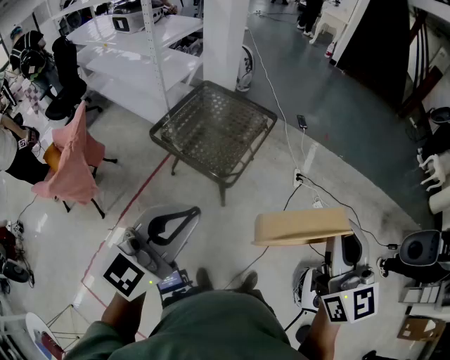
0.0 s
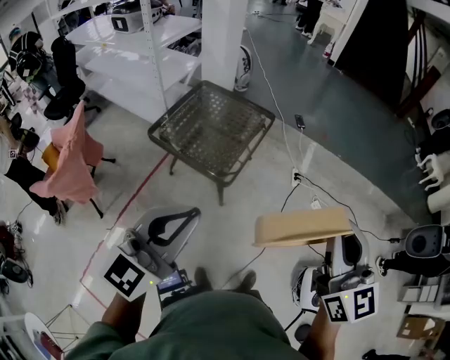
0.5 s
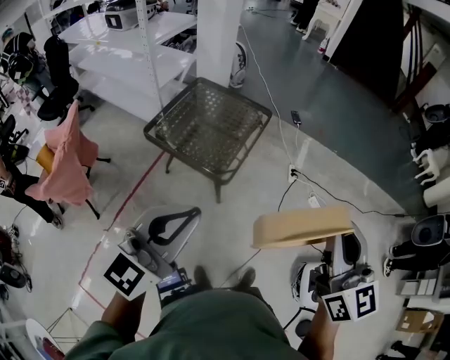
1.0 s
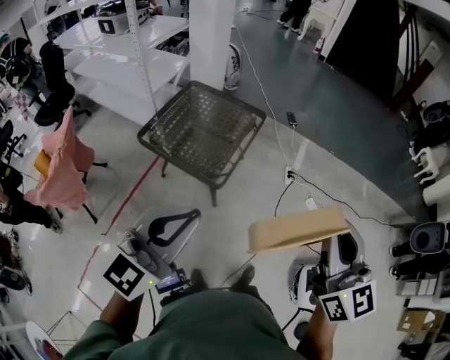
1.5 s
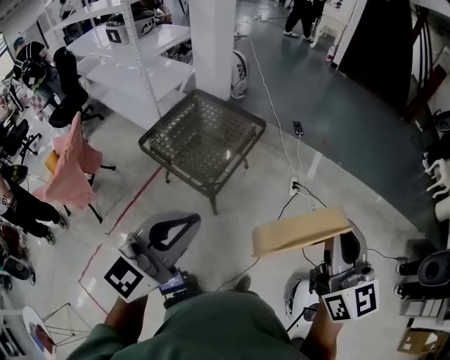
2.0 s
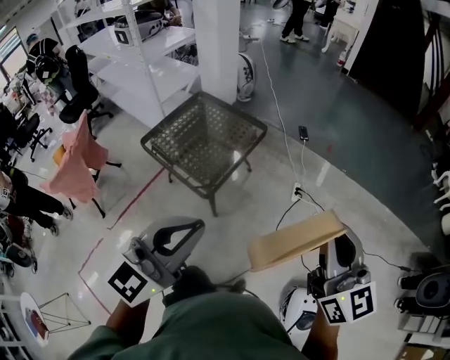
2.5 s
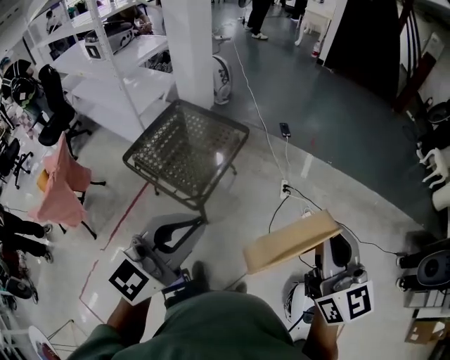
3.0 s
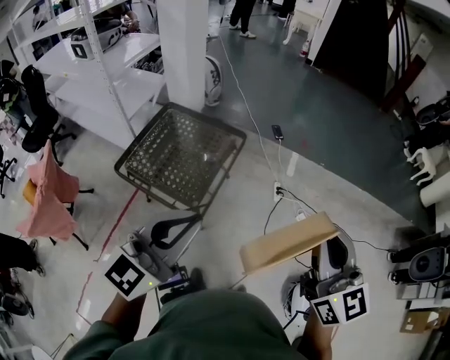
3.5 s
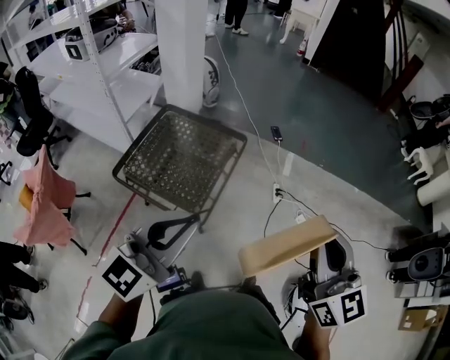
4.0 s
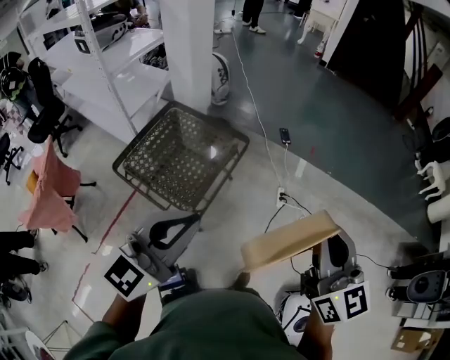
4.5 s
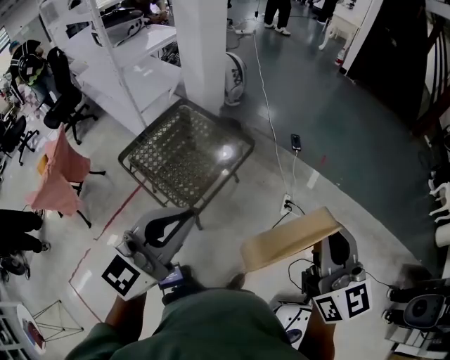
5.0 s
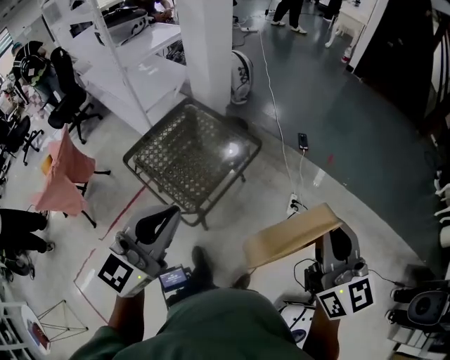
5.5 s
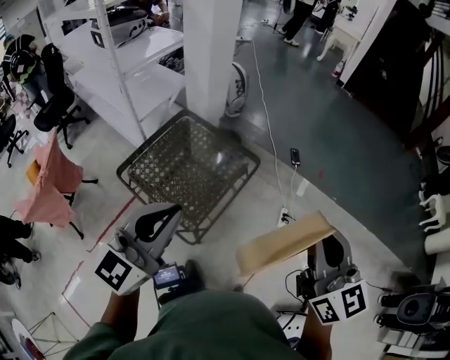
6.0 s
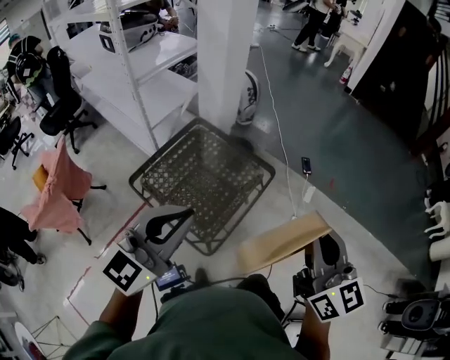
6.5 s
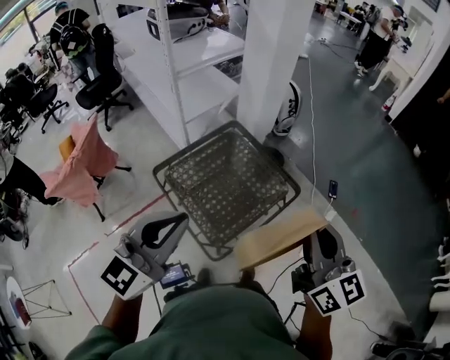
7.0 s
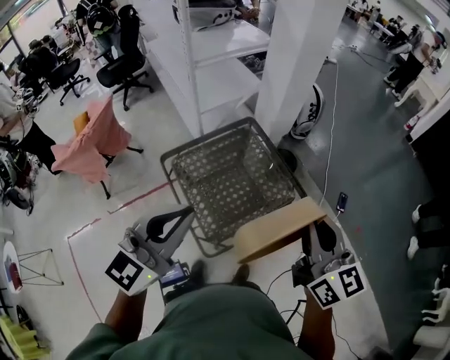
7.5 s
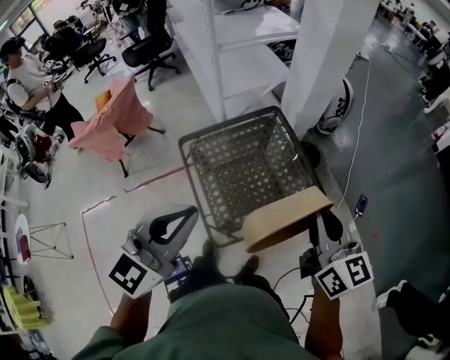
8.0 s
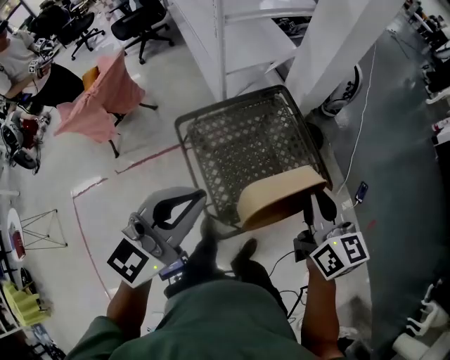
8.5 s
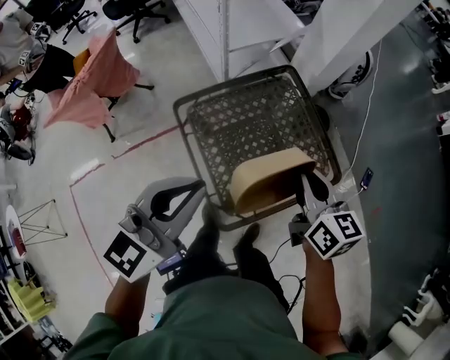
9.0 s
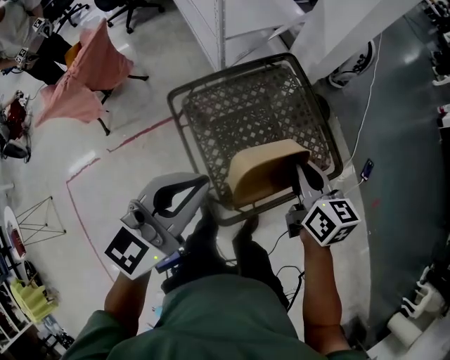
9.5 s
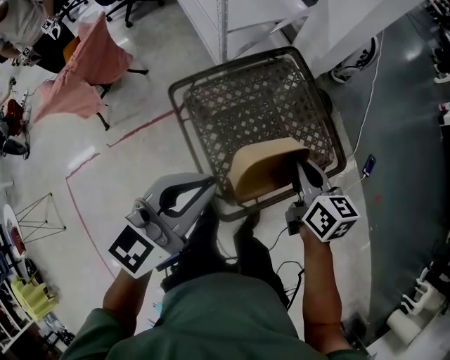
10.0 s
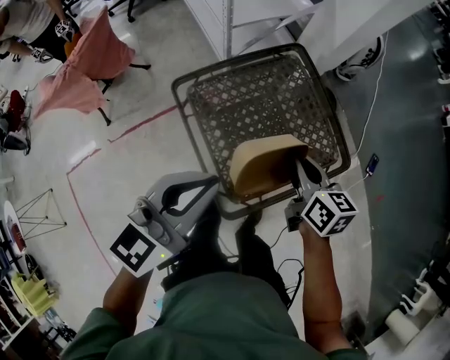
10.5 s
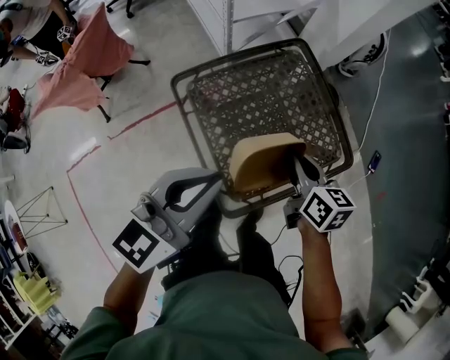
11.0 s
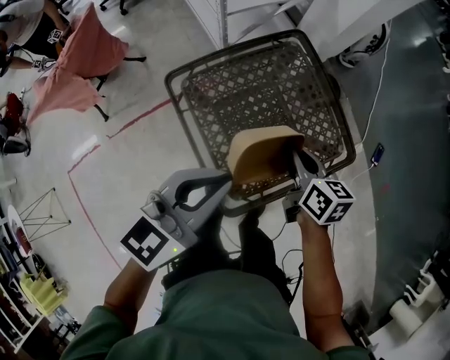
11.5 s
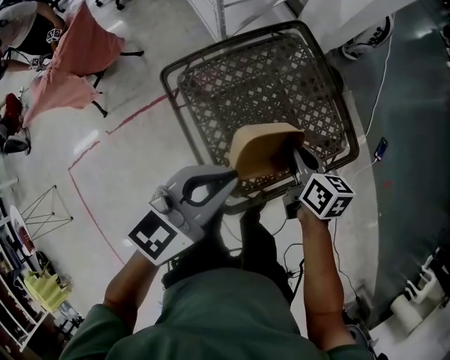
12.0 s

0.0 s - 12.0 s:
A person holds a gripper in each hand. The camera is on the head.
0.0 s - 2.0 s: Both grippers move to the right and forward, roughly 15 cm.
2.0 s - 4.0 s: The grippers both shift forward and to the left by some 15 cm.
4.0 s - 6.0 s: Both grippers move forward, about 15 cm. The left gripper goes to the right and returns, about 15 cm each way.
6.0 s - 8.0 s: The left gripper changes place by approximately 10 cm, and turns by some 30 degrees. The right gripper changes place by approximately 30 cm, and swivels roughly 40 degrees.
8.0 s - 10.0 s: The right gripper travels downward, to the left and forward by approximately 30 cm, and changes its angle by about 30 degrees. Meanwhile the left gripper travels downward, forward and to the left by some 20 cm.
10.0 s - 12.0 s: Both grippers travel together downward, roughly 10 cm.

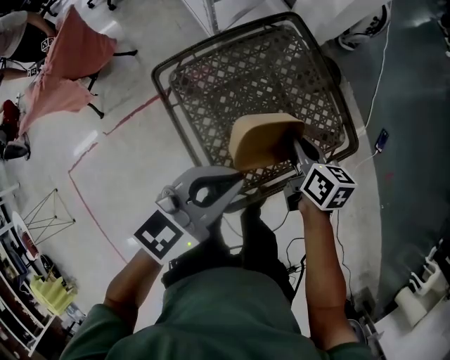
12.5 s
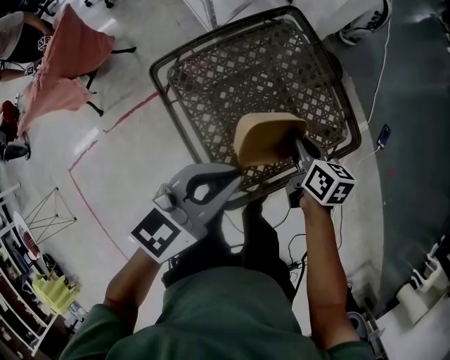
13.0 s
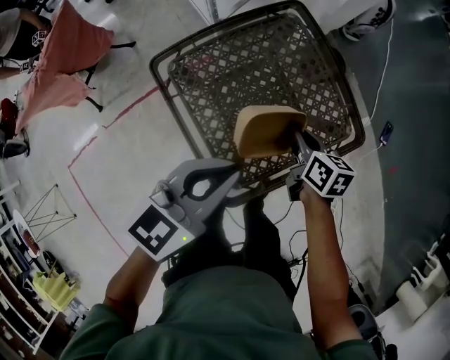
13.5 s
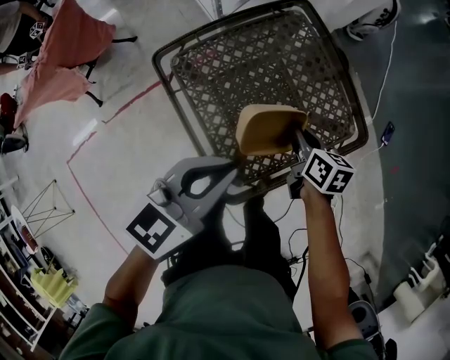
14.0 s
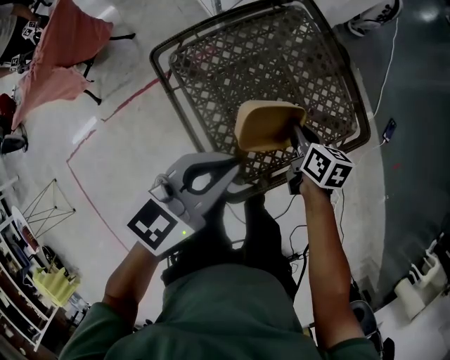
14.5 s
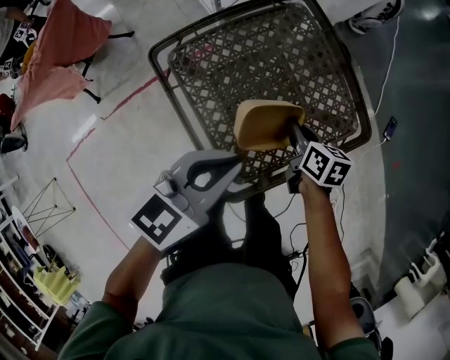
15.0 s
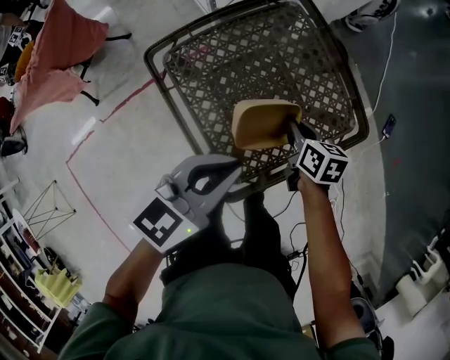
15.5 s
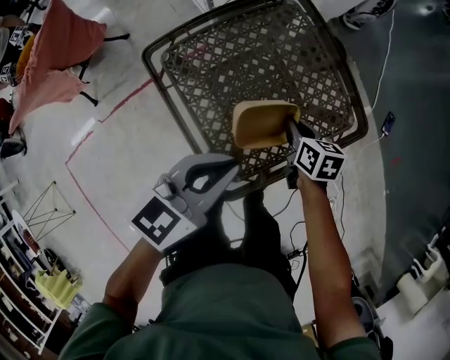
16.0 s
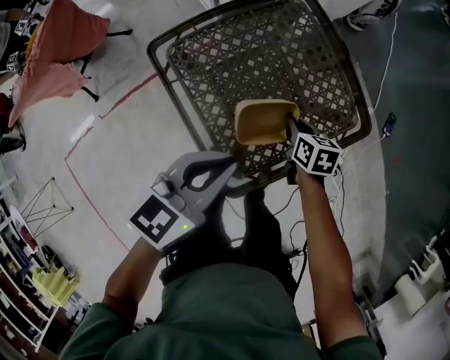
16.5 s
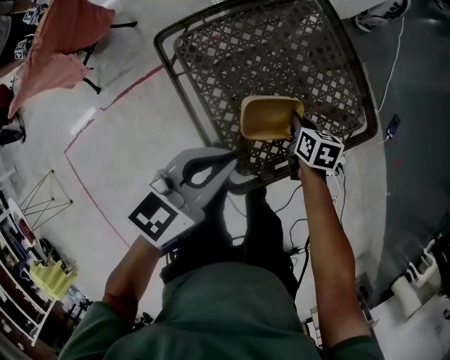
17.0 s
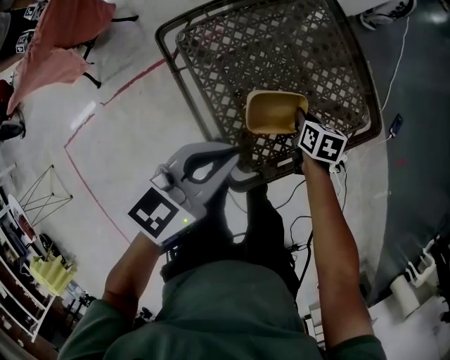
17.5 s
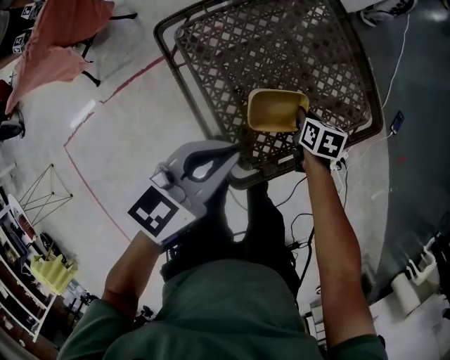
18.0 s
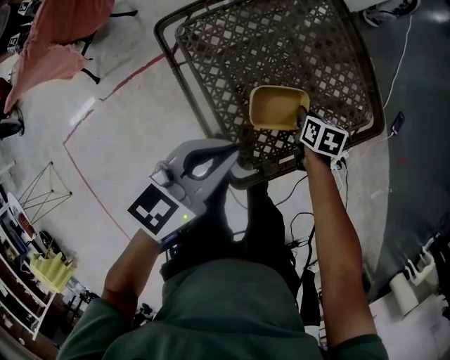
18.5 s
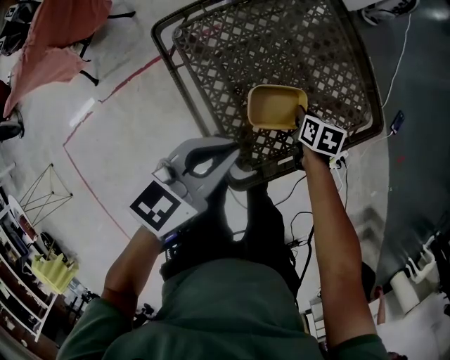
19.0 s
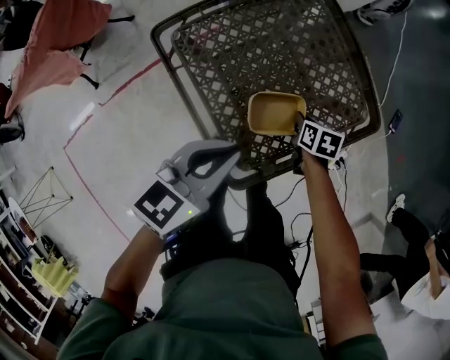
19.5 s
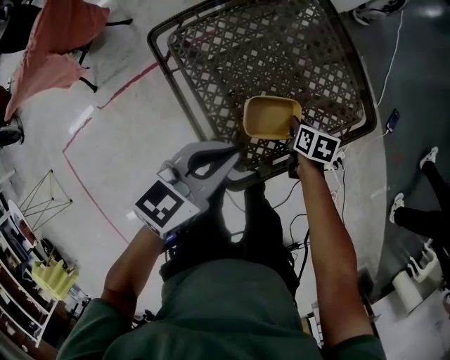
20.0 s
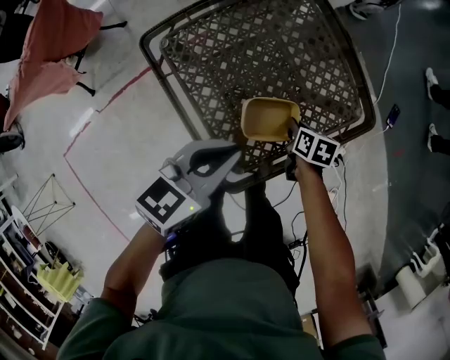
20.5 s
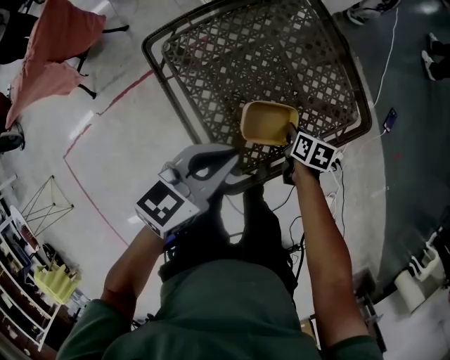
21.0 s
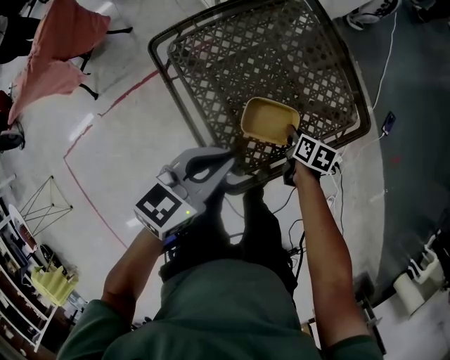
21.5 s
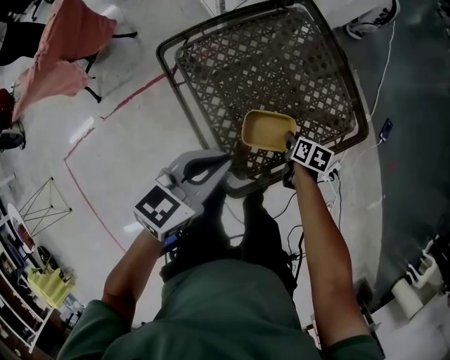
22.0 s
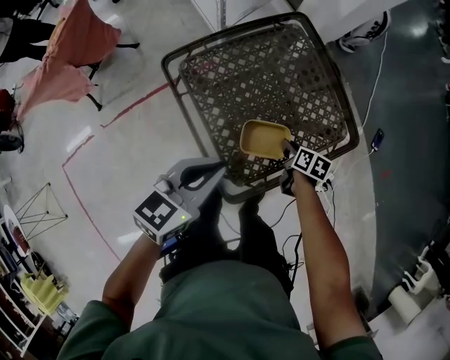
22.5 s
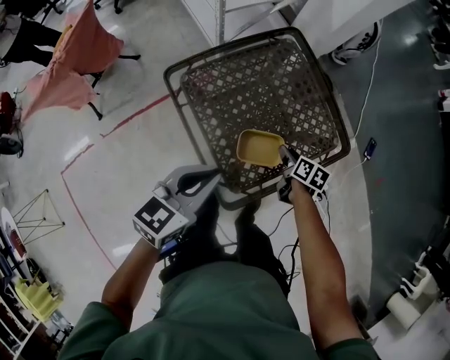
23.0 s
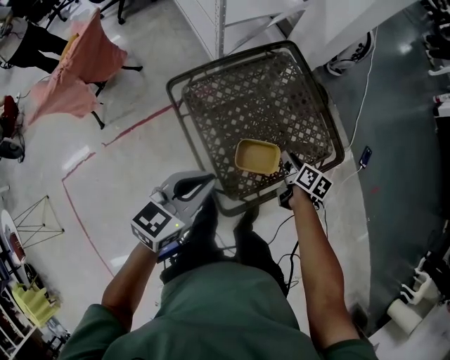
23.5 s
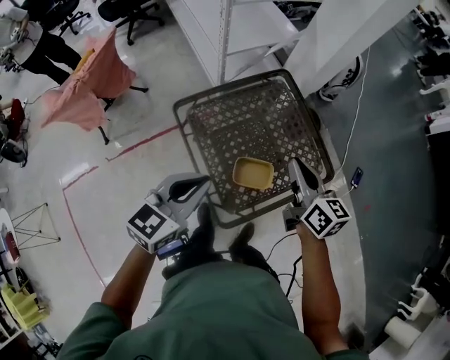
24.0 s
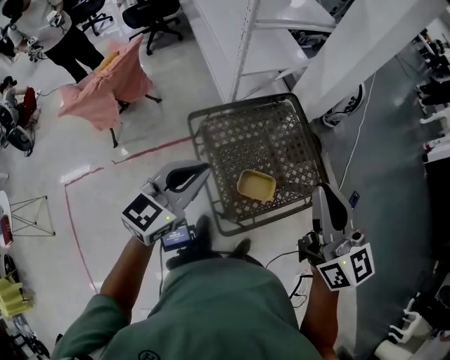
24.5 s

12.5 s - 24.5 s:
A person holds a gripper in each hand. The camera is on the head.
12.5 s - 14.5 s: The right gripper moves downward, approximately 10 cm; the left gripper shifts by approximately 5 cm.
14.5 s - 16.5 s: The right gripper travels downward by approximately 5 cm.
16.5 s - 18.5 s: The right gripper moves downward, approximately 5 cm.
18.5 s - 20.5 s: There are only small adjustments of the grippers.
20.5 s - 22.5 s: The right gripper opens its fingers; the left gripper travels upward by roughly 5 cm.
22.5 s - 24.5 s: The left gripper heads upward, covering some 20 cm, and rotates some 20 degrees. Meanwhile the right gripper is displaced upward by approximately 60 cm, tilts its fingers roughly 60 degrees upward, and closes its fingers.

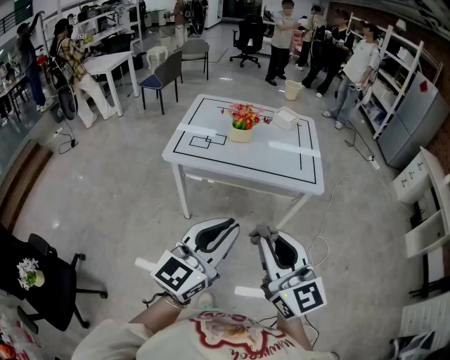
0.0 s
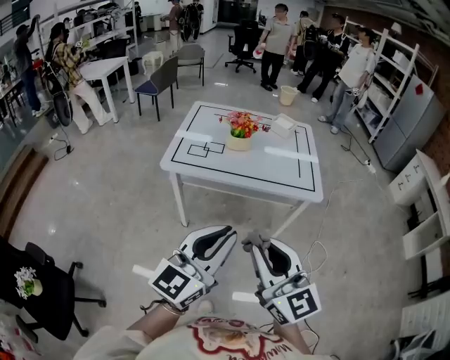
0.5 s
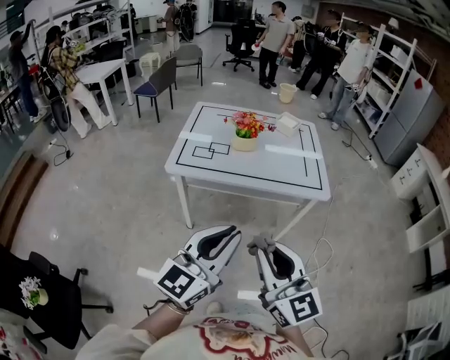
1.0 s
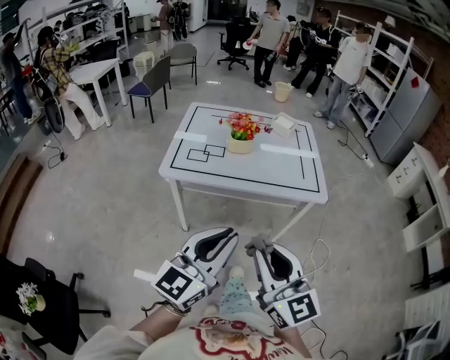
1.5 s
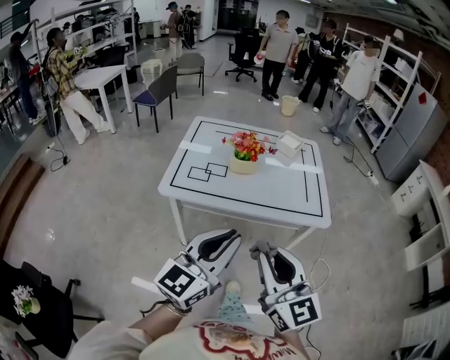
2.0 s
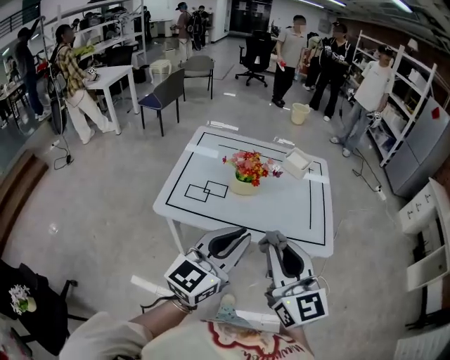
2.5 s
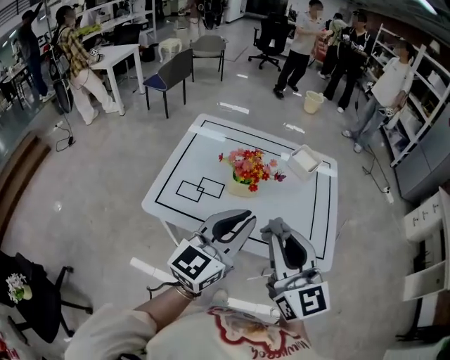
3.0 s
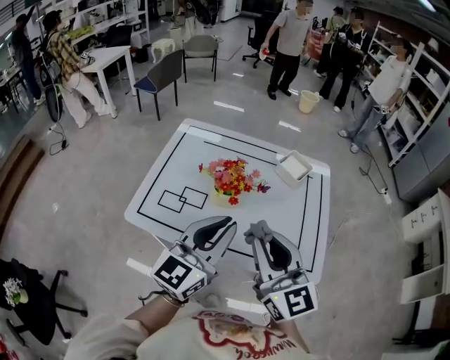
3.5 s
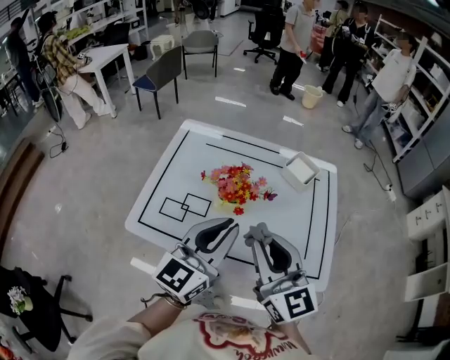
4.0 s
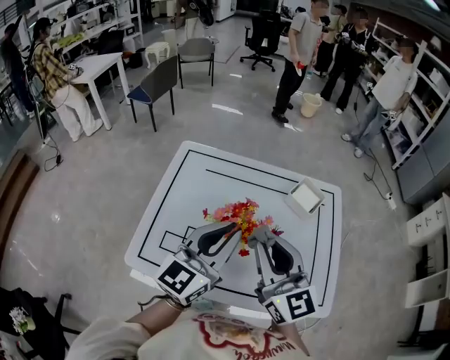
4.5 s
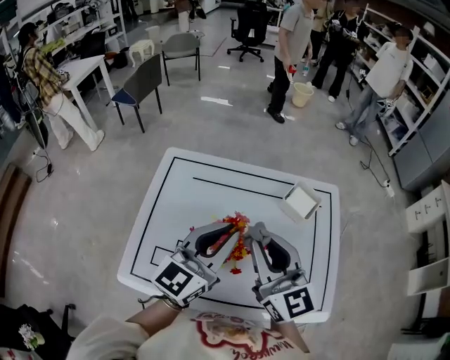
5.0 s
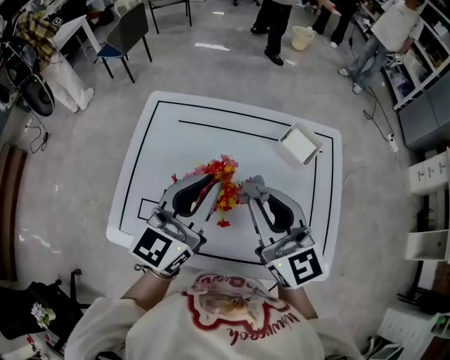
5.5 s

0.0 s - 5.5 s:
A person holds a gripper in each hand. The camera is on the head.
0.0 s - 2.0 s: The grippers both shift forward by approximately 10 cm.
2.0 s - 3.5 s: The two grippers go about 30 cm forward.
3.5 s - 5.5 s: The two grippers go approximately 20 cm forward.
